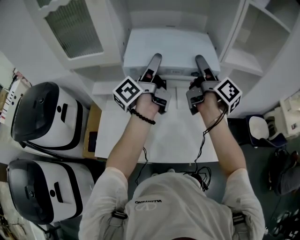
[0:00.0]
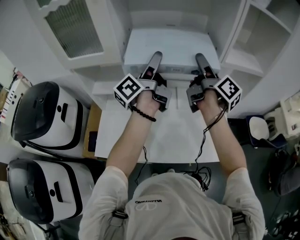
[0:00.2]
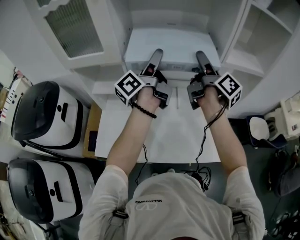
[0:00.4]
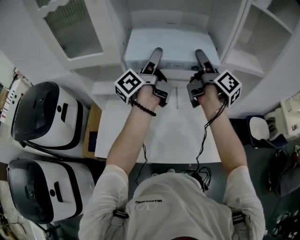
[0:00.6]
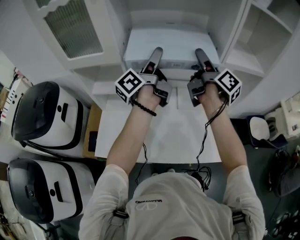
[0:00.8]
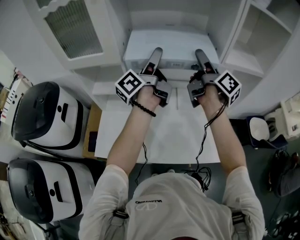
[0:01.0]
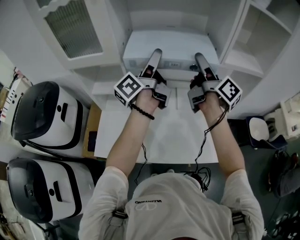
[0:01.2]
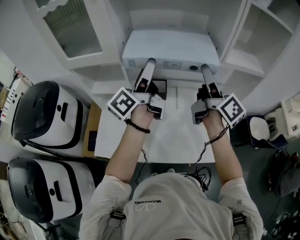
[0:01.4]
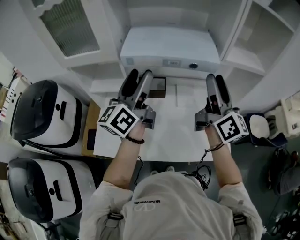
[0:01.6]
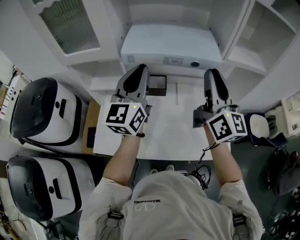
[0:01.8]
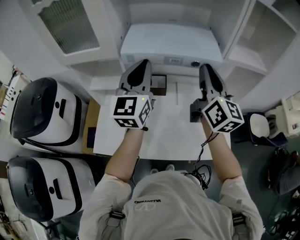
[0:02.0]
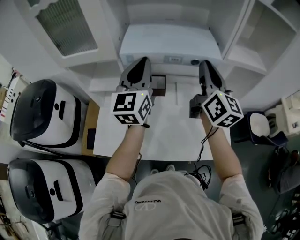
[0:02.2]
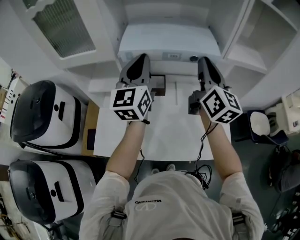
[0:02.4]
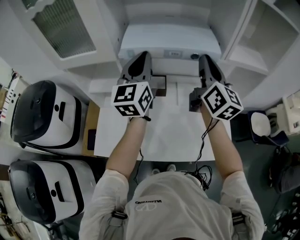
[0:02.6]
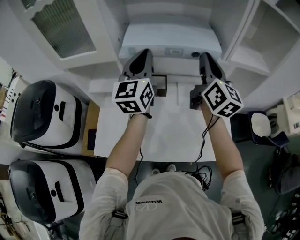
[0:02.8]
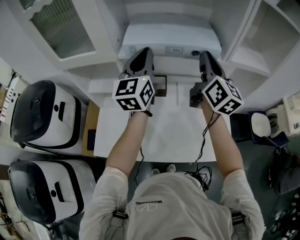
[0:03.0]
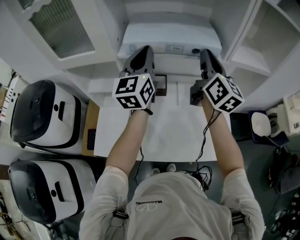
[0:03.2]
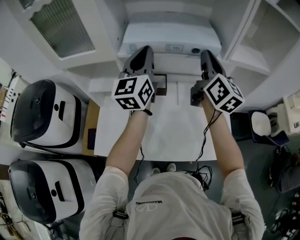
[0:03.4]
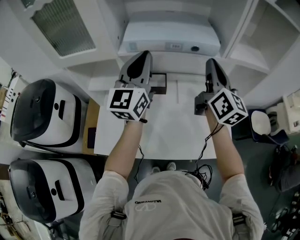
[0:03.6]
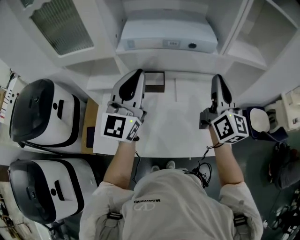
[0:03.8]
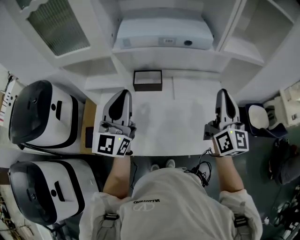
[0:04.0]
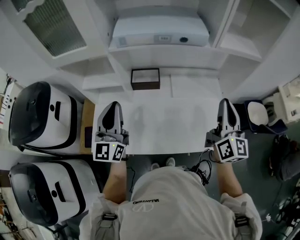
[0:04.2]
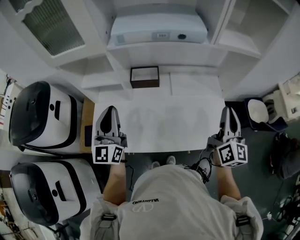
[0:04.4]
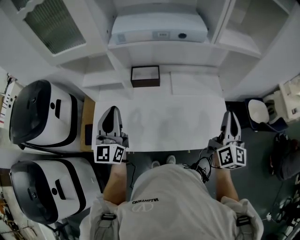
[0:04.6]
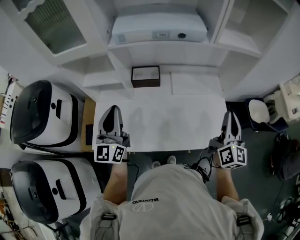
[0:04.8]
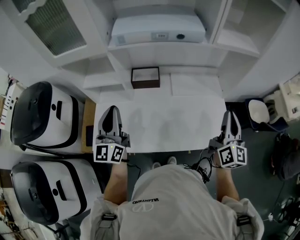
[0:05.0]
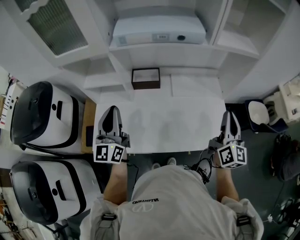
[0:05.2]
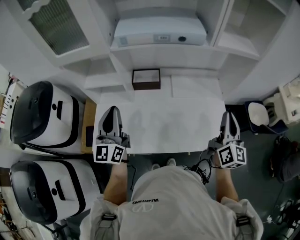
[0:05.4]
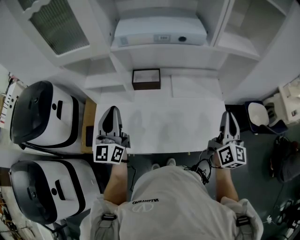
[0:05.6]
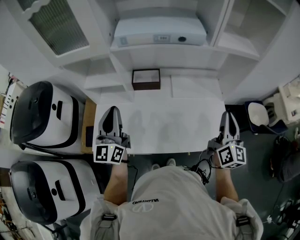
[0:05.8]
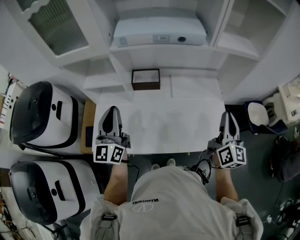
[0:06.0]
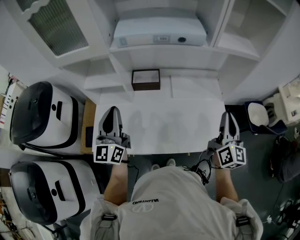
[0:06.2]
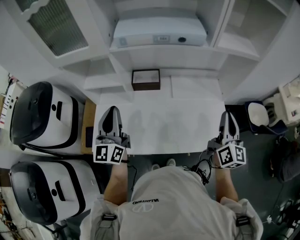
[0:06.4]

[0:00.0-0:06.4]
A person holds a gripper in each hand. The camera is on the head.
0:00.0 to 0:01.6: Both grippers move backward, about 10 cm. The right gripper rotates roughly 40 degrees; the left gripper turns by some 40 degrees.
0:01.6 to 0:03.2: Both grippers move forward, some 10 cm. The right gripper closes up, while the left gripper swivels about 30 degrees, and closes.
0:03.2 to 0:04.8: The right gripper is displaced backward, to the right and downward by approximately 30 cm; the left gripper moves backward and downward, roughly 25 cm.
0:04.8 to 0:06.4: Neither gripper changes place.

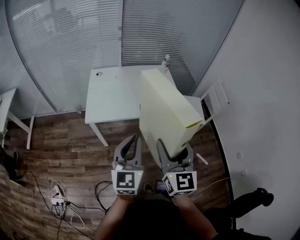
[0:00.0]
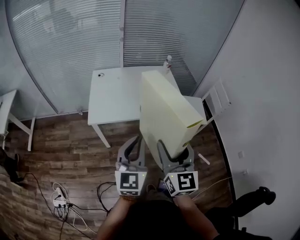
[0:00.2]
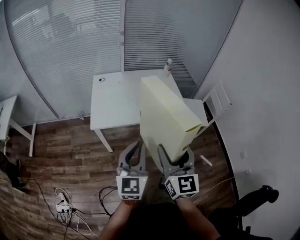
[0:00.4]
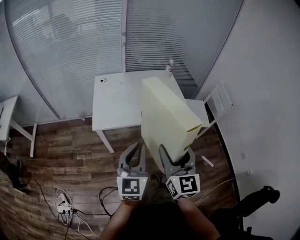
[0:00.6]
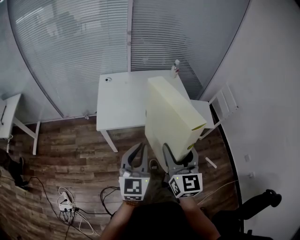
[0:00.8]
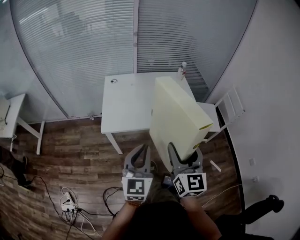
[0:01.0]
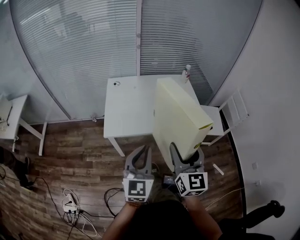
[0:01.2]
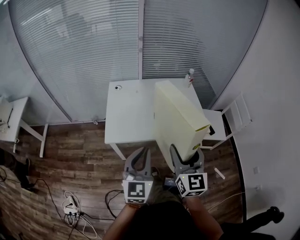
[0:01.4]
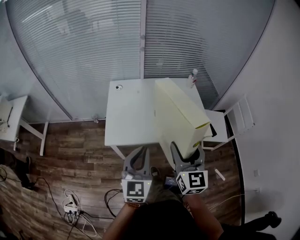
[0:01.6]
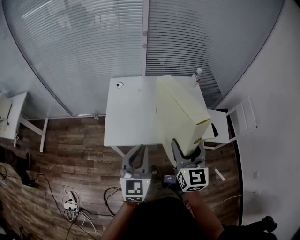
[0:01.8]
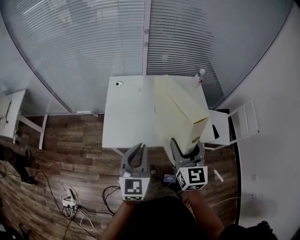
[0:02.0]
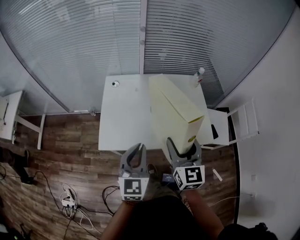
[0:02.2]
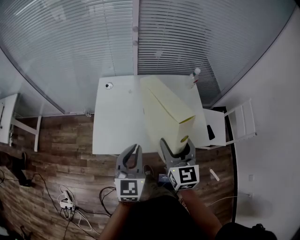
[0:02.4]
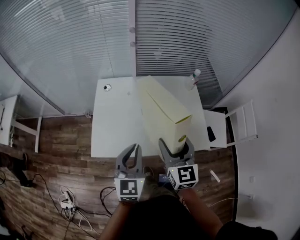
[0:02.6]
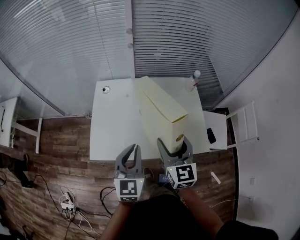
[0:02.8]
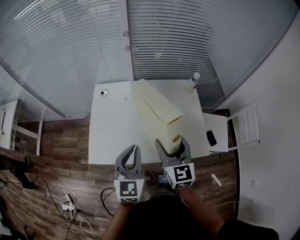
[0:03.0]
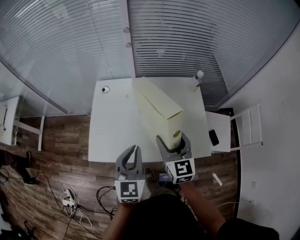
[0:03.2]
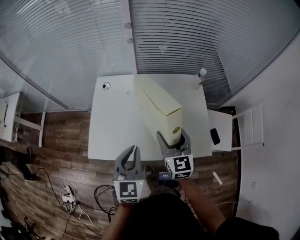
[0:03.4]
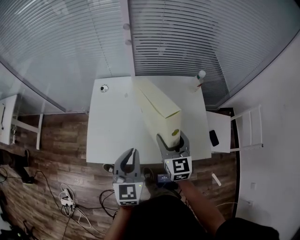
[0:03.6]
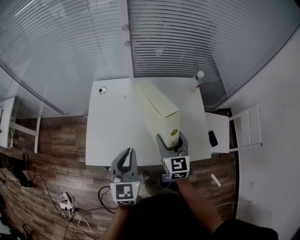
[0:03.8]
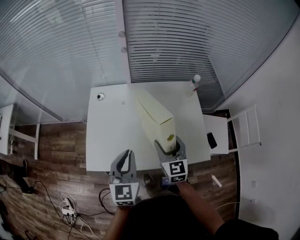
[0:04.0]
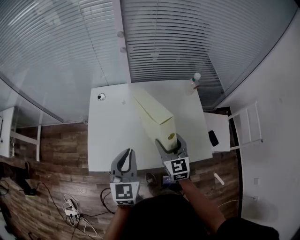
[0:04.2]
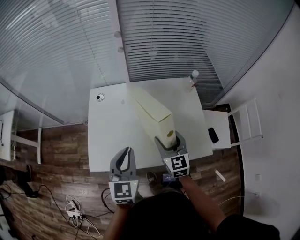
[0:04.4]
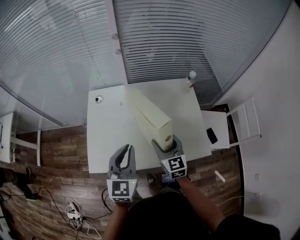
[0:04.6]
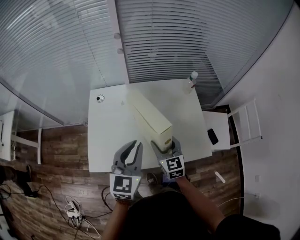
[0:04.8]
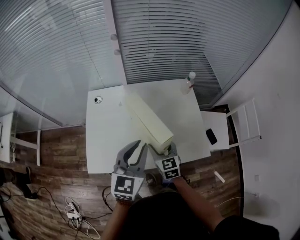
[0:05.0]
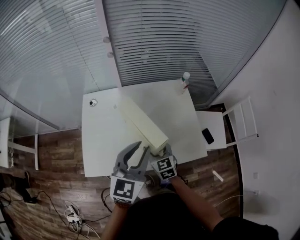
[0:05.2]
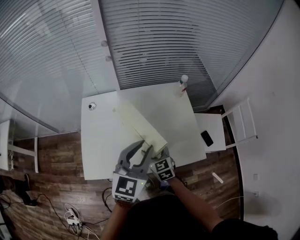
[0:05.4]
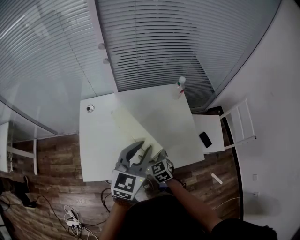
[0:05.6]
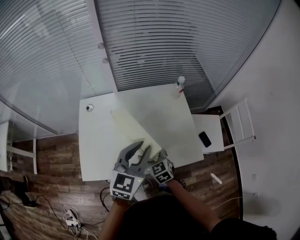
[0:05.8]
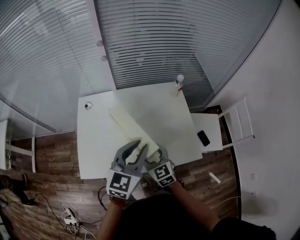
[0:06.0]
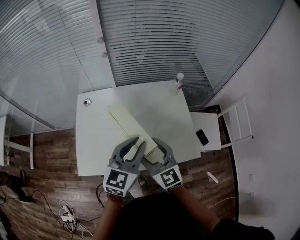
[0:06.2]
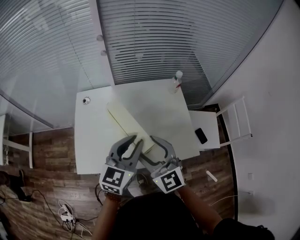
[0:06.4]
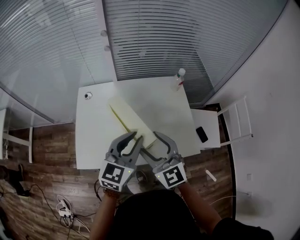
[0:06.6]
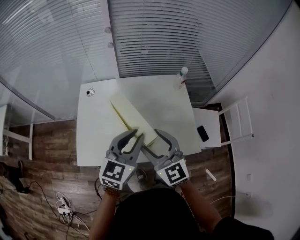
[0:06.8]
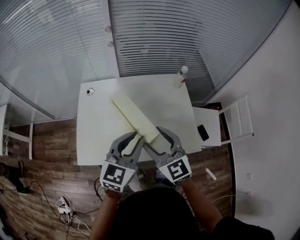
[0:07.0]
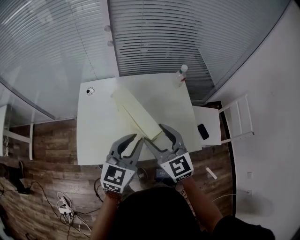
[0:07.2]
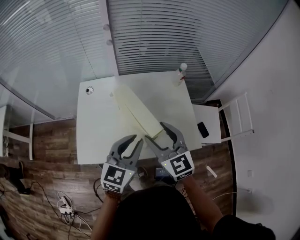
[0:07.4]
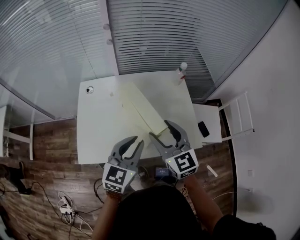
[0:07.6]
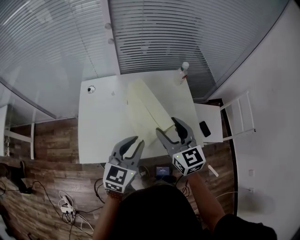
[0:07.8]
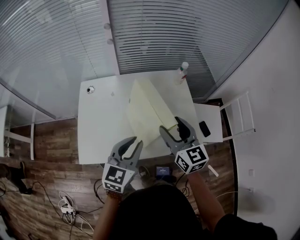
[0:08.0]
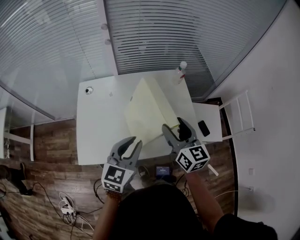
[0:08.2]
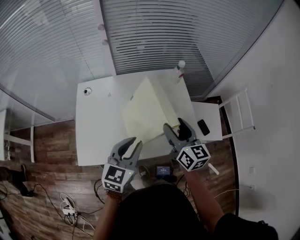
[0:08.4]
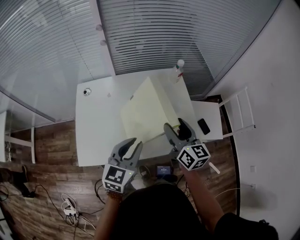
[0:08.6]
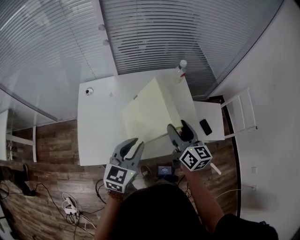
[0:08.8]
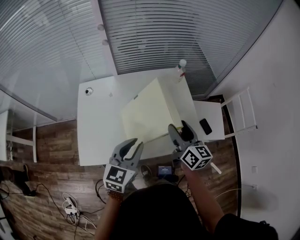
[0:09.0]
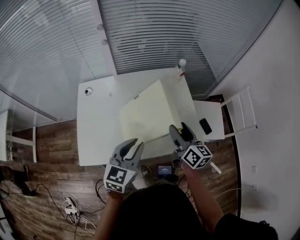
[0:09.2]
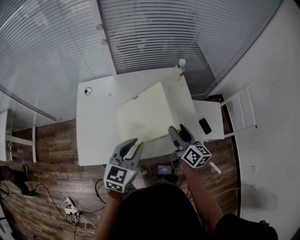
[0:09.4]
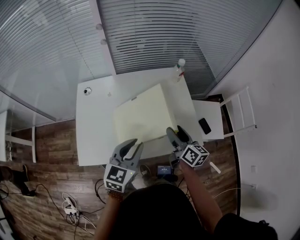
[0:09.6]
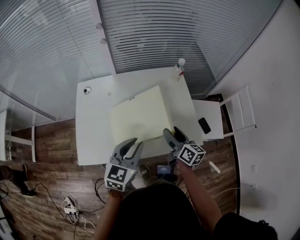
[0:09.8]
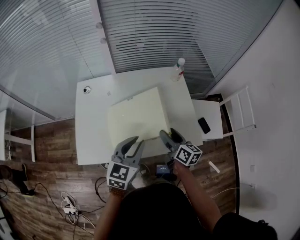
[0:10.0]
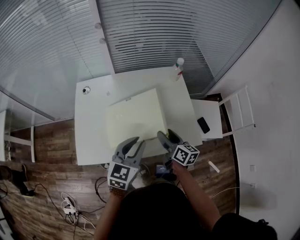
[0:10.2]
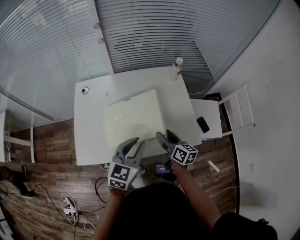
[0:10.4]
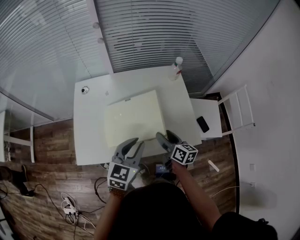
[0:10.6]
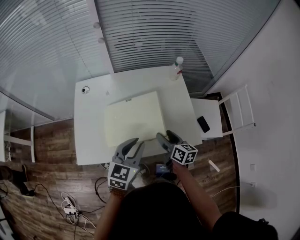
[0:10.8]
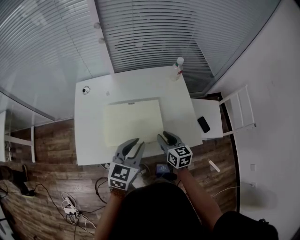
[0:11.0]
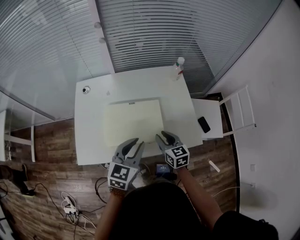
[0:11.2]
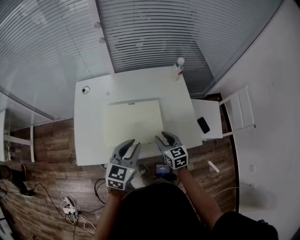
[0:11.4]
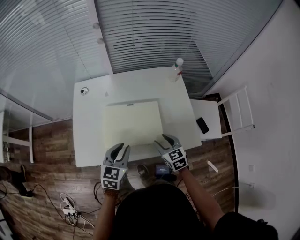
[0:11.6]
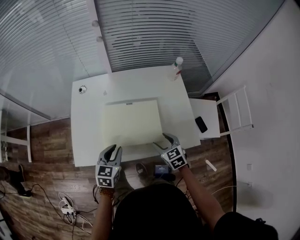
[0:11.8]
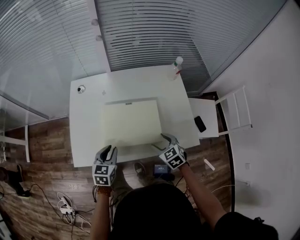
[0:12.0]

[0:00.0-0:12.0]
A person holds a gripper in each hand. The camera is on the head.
0:00.0 to 0:01.6: Both grippers travel together forward and to the left, approximately 20 cm.
0:01.6 to 0:03.0: Both grippers move forward, about 20 cm.
0:03.0 to 0:04.4: The left gripper moves approximately 5 cm, while the right gripper shifts approximately 10 cm downward and forward.
0:04.4 to 0:06.0: The left gripper moves to the right, about 10 cm, and swivels some 20 degrees.
0:06.0 to 0:07.6: The right gripper is displaced upward by about 15 cm, while the left gripper changes place by some 5 cm.
0:07.6 to 0:09.0: The right gripper goes approximately 10 cm to the right and downward, and swivels approximately 40 degrees.
0:09.0 to 0:10.4: The right gripper travels downward by about 10 cm.
0:10.4 to 0:12.0: The left gripper moves to the left and downward, some 20 cm, and rotates about 20 degrees. The right gripper goes some 5 cm downward, rolls counterclockwise, seen from behind, by roughly 50 degrees, and closes, then opens again.

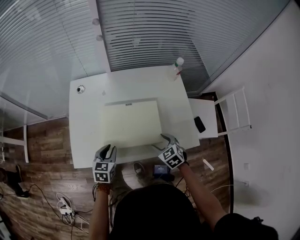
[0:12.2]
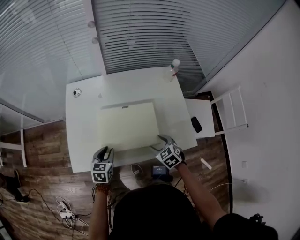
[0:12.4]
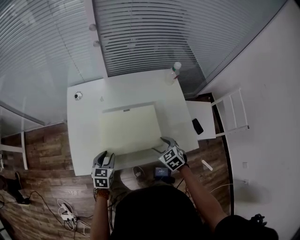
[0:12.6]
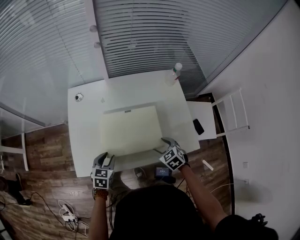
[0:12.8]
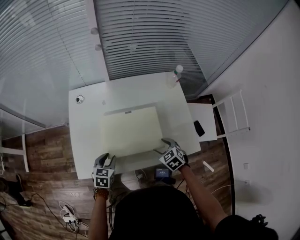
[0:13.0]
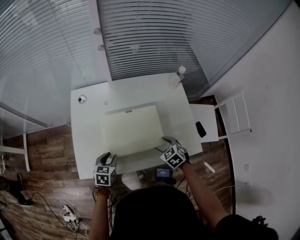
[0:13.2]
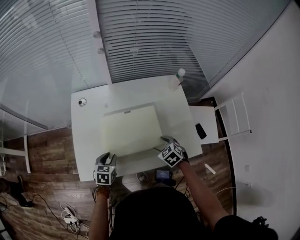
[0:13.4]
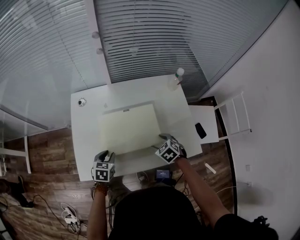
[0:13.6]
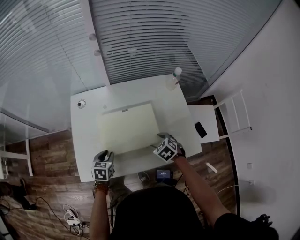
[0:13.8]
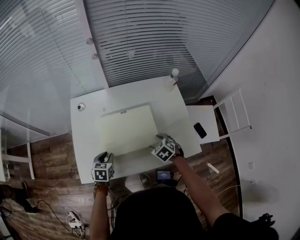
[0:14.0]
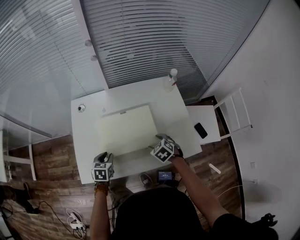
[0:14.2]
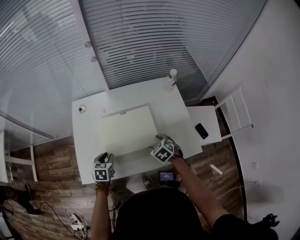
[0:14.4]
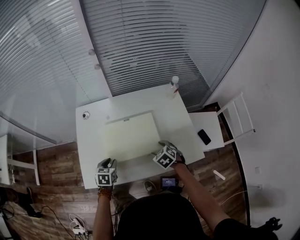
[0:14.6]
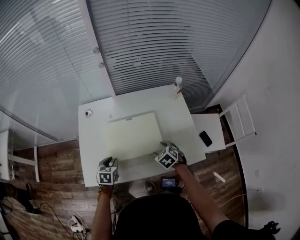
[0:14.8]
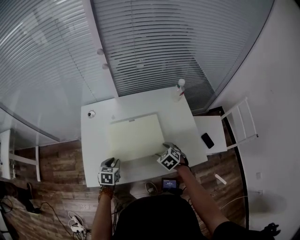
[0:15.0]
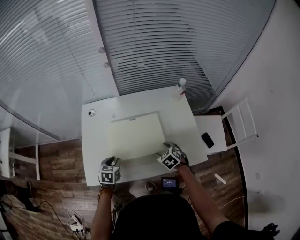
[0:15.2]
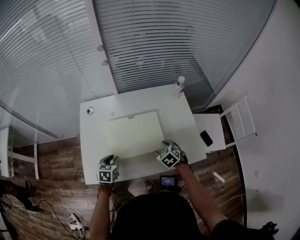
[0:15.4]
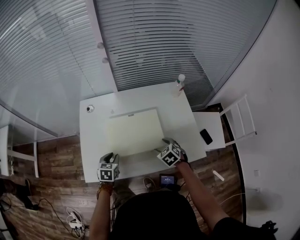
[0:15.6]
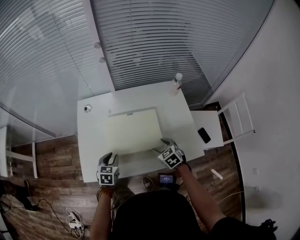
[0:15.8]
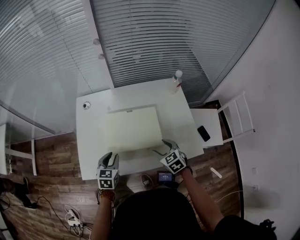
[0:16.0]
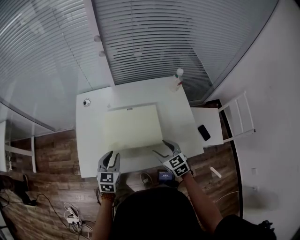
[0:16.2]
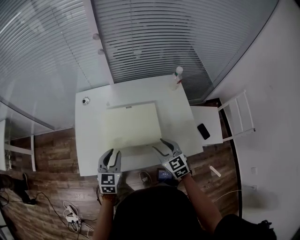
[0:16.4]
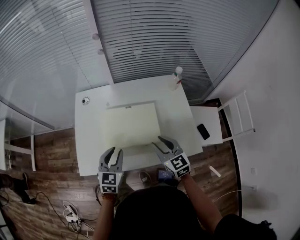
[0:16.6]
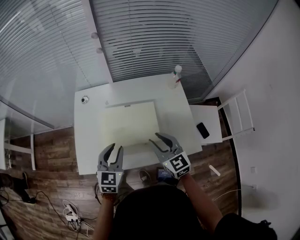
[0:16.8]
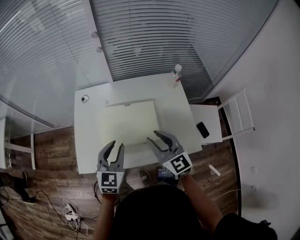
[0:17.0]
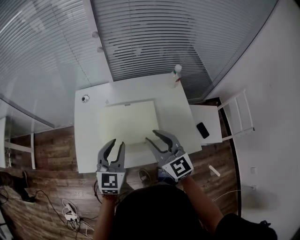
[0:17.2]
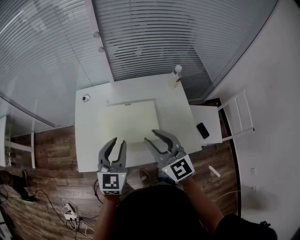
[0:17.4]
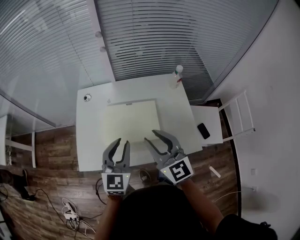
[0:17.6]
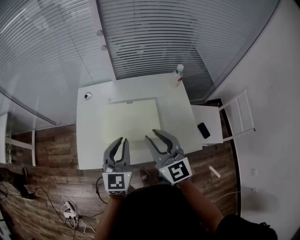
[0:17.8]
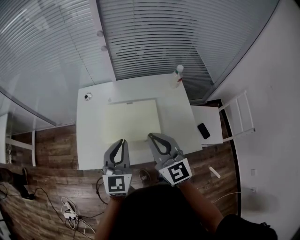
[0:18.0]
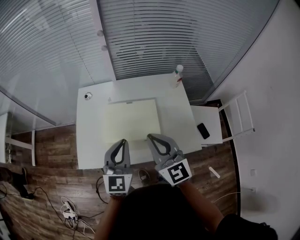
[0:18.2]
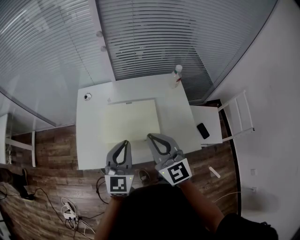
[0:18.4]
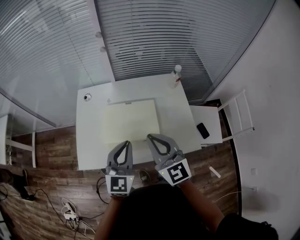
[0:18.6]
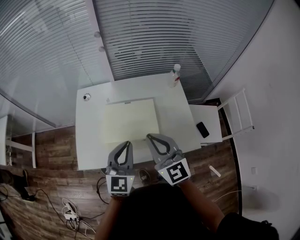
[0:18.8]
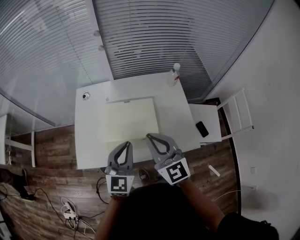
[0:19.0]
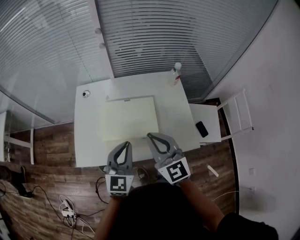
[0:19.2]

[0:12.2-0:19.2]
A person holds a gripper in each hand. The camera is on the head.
0:12.2 to 0:13.6: The left gripper moves approximately 5 cm. The right gripper is displaced forward by roughly 5 cm.
0:13.6 to 0:15.0: The two grippers keep their place.
0:15.0 to 0:16.4: The grippers both shift upward by approximately 10 cm. The right gripper tilts its fingers roughly 30 degrees upward, while the left gripper changes its angle by about 20 degrees.
0:16.4 to 0:17.8: The left gripper goes some 15 cm upward and to the right, while the right gripper goes about 20 cm upward, and swivels roughly 20 degrees.
0:17.8 to 0:19.2: The right gripper closes.
